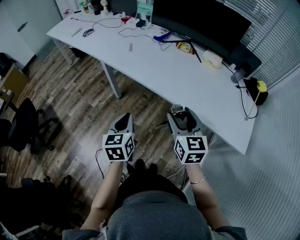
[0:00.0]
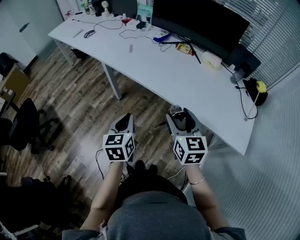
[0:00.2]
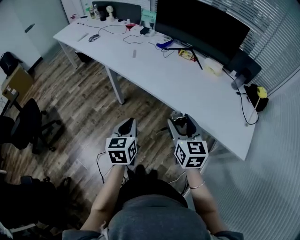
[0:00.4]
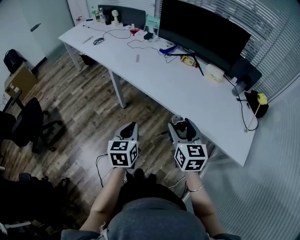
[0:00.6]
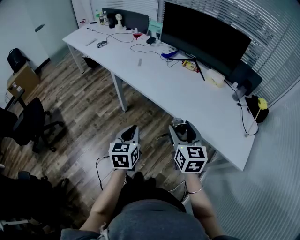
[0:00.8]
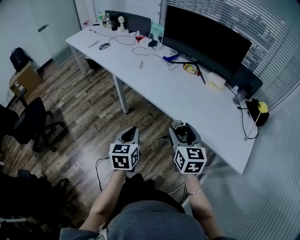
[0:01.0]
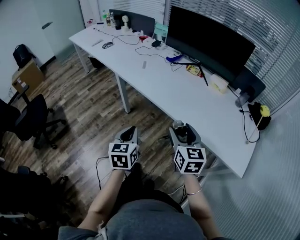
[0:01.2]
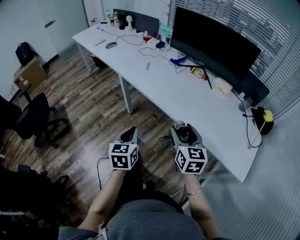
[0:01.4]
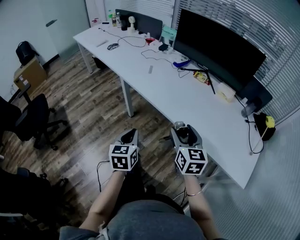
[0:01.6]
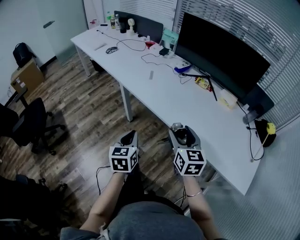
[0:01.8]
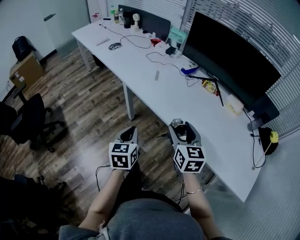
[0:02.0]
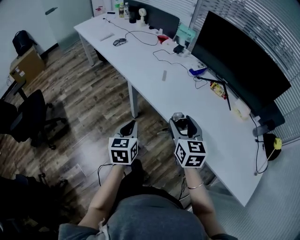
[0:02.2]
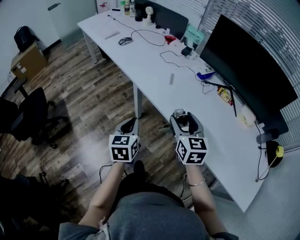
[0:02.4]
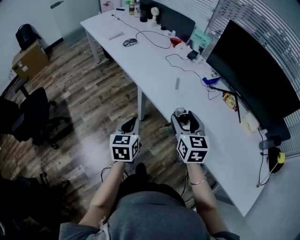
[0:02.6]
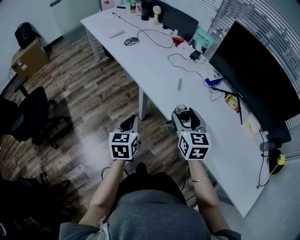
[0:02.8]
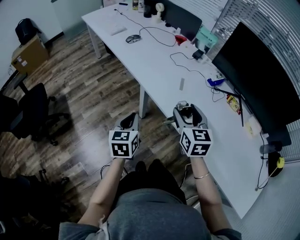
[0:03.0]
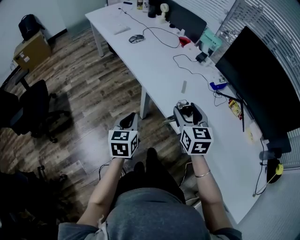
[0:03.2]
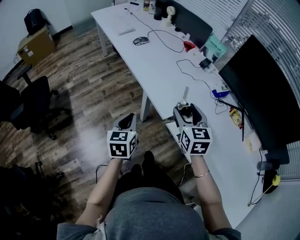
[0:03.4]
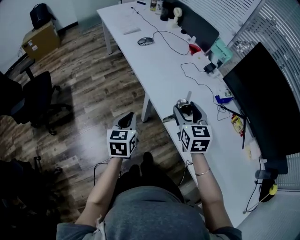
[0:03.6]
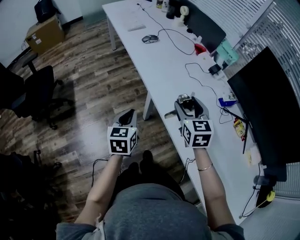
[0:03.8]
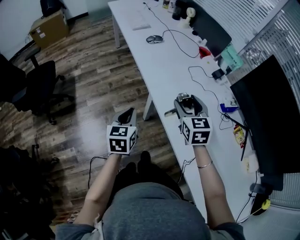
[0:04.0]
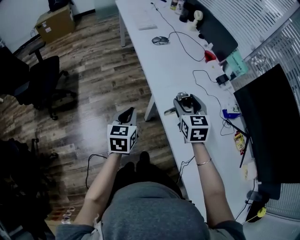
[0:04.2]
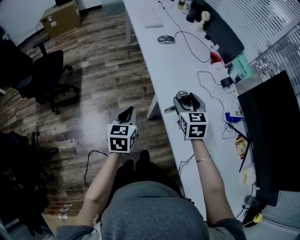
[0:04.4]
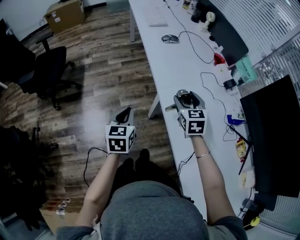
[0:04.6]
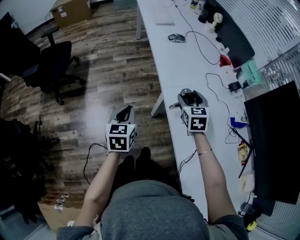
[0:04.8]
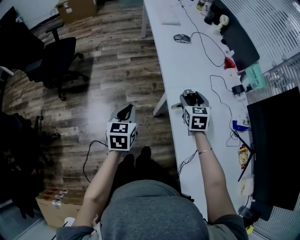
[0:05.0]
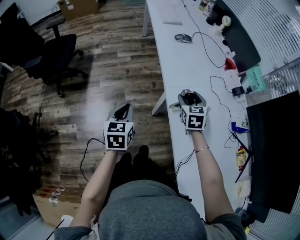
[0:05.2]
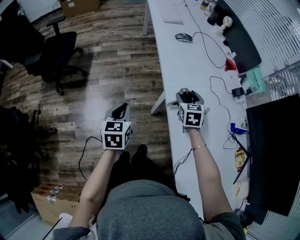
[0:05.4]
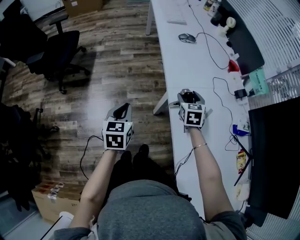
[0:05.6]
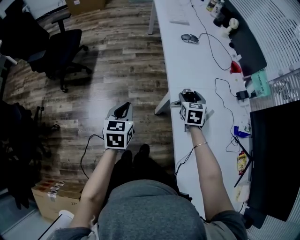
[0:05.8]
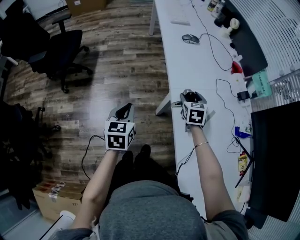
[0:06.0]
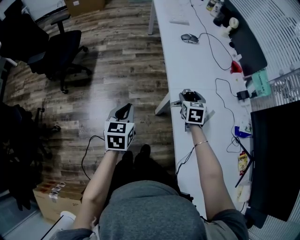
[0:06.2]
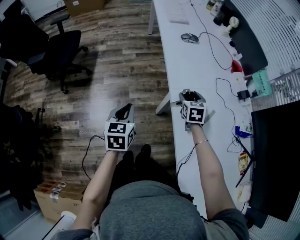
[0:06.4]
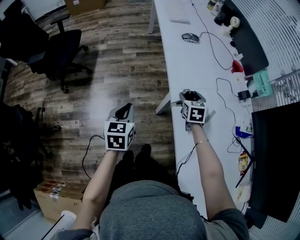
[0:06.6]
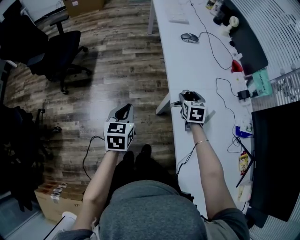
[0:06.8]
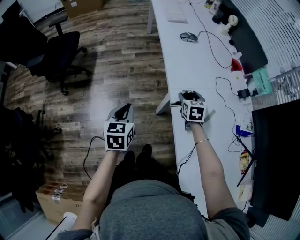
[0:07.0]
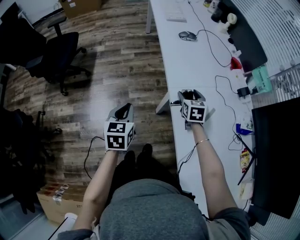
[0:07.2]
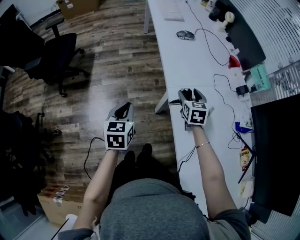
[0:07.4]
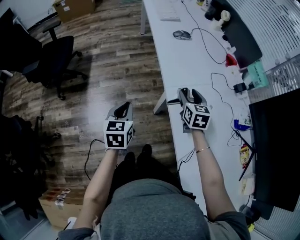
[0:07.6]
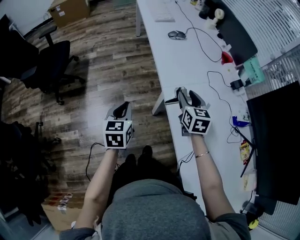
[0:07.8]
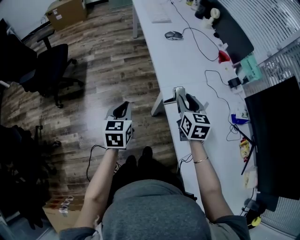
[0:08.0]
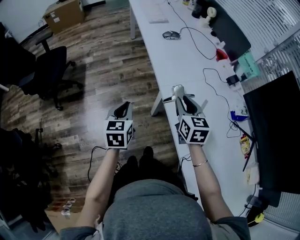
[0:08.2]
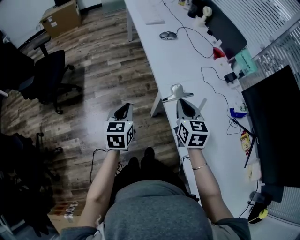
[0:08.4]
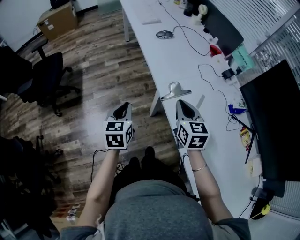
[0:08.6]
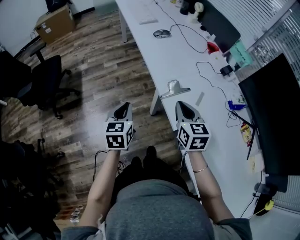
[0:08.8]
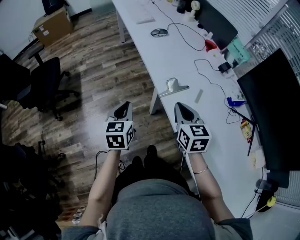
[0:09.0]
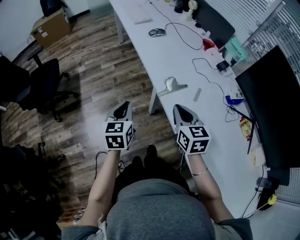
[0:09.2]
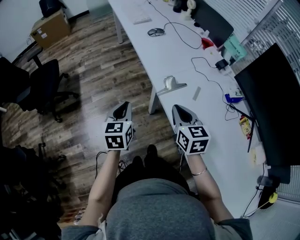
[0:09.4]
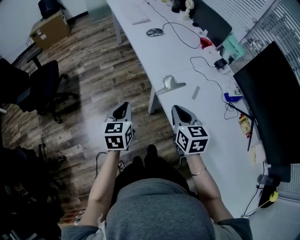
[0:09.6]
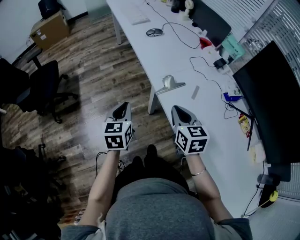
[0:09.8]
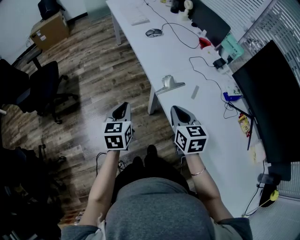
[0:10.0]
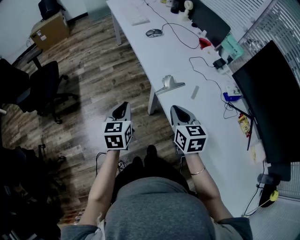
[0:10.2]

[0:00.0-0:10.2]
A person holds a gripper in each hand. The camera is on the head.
0:00.0 to 0:01.4: There are only small adjustments of the grippers.
0:01.4 to 0:03.0: Both grippers move forward and to the left, approximately 35 cm.
0:03.0 to 0:04.4: The left gripper is displaced forward by roughly 10 cm. Meanwhile the right gripper heads forward, covering about 20 cm, and changes its angle by approximately 30 degrees.
0:04.4 to 0:05.8: The left gripper shifts about 5 cm to the left. The right gripper travels downward and forward by some 10 cm.
0:05.8 to 0:07.2: The grippers move only a little.
0:07.2 to 0:08.8: The right gripper moves backward and upward, about 20 cm, and closes.
0:08.8 to 0:10.2: The grippers stay close to where they were, moving slightly.

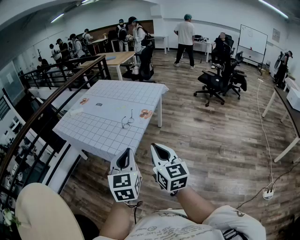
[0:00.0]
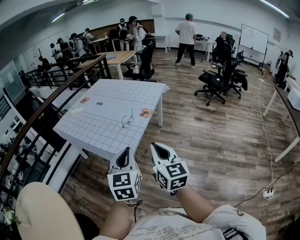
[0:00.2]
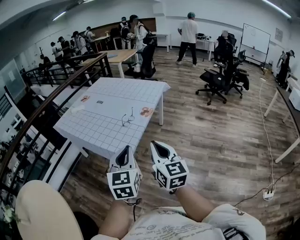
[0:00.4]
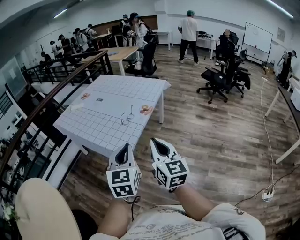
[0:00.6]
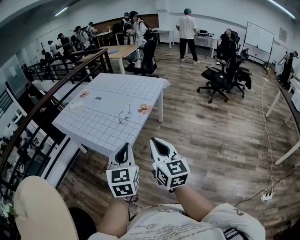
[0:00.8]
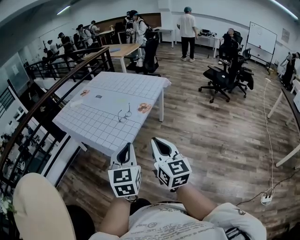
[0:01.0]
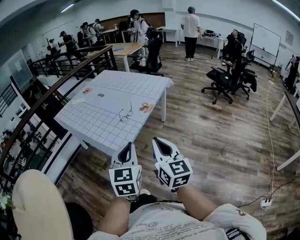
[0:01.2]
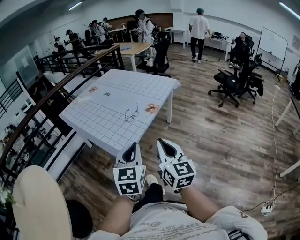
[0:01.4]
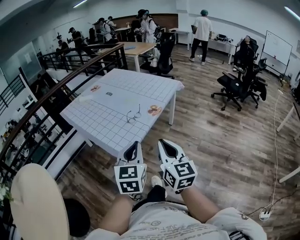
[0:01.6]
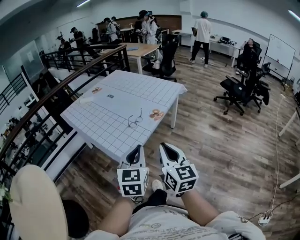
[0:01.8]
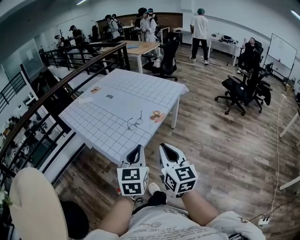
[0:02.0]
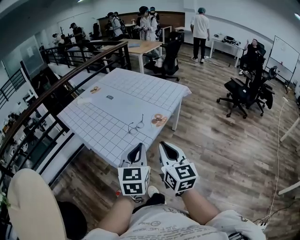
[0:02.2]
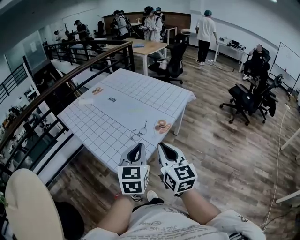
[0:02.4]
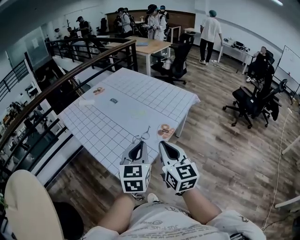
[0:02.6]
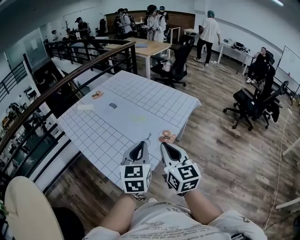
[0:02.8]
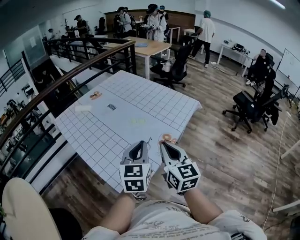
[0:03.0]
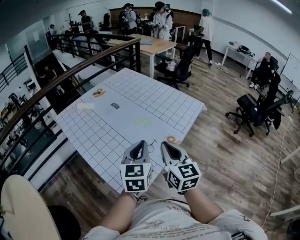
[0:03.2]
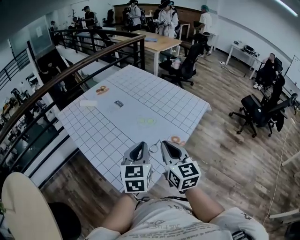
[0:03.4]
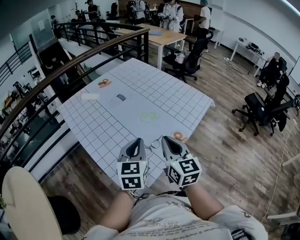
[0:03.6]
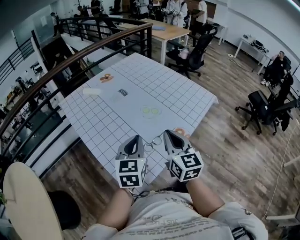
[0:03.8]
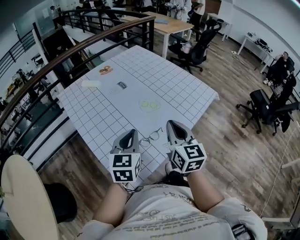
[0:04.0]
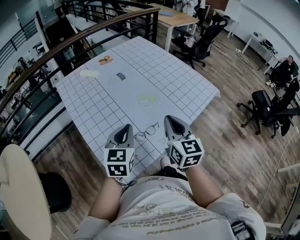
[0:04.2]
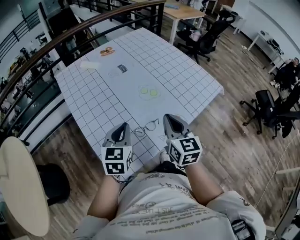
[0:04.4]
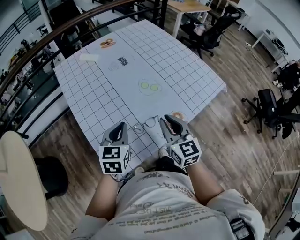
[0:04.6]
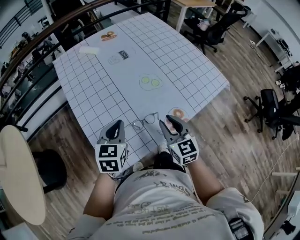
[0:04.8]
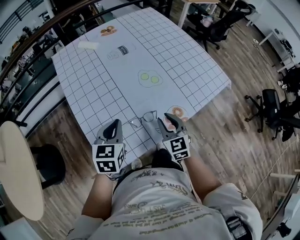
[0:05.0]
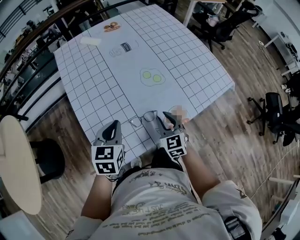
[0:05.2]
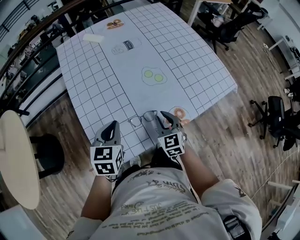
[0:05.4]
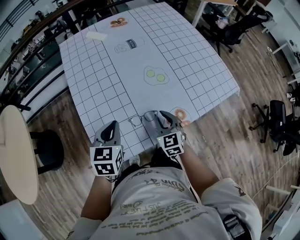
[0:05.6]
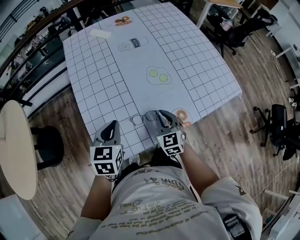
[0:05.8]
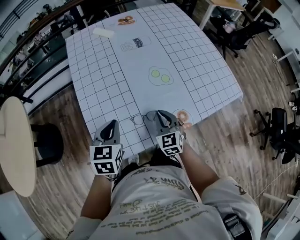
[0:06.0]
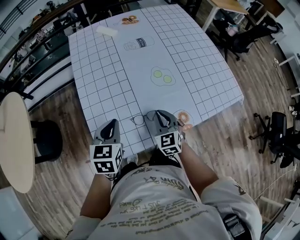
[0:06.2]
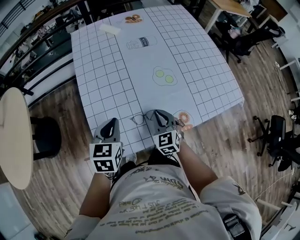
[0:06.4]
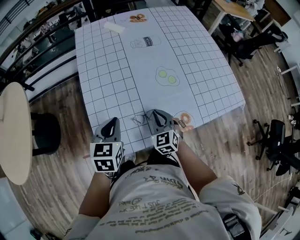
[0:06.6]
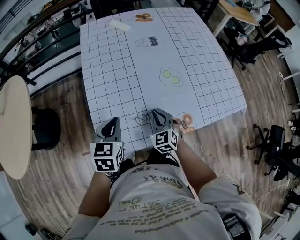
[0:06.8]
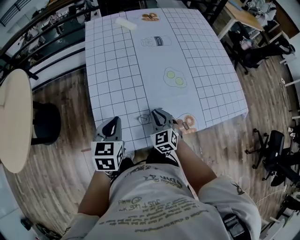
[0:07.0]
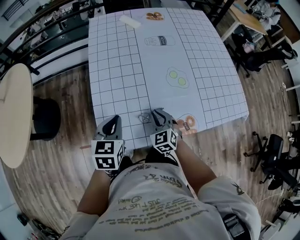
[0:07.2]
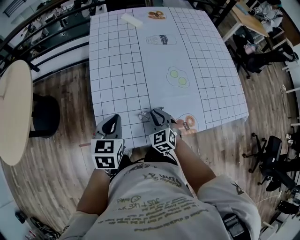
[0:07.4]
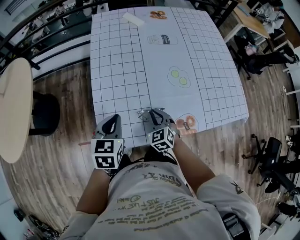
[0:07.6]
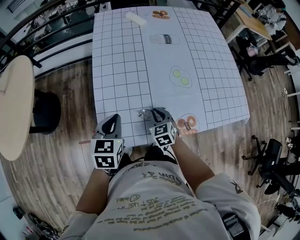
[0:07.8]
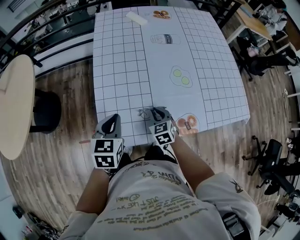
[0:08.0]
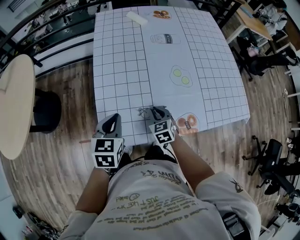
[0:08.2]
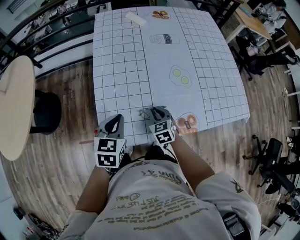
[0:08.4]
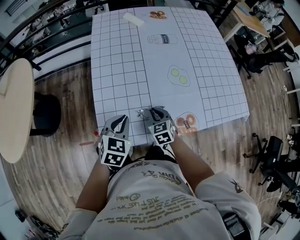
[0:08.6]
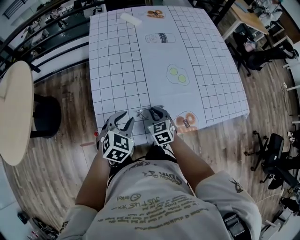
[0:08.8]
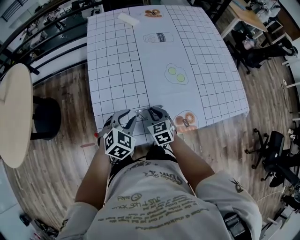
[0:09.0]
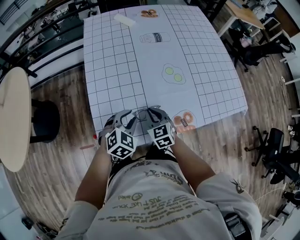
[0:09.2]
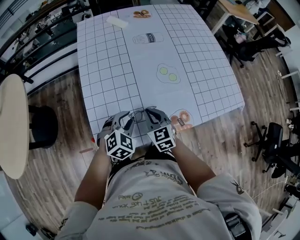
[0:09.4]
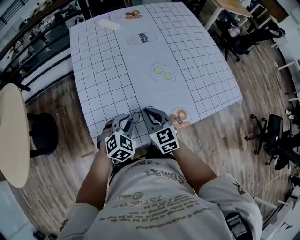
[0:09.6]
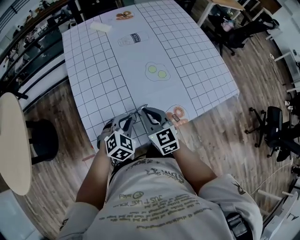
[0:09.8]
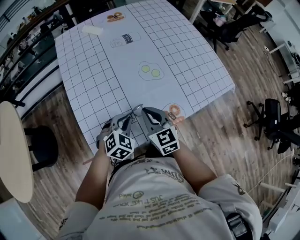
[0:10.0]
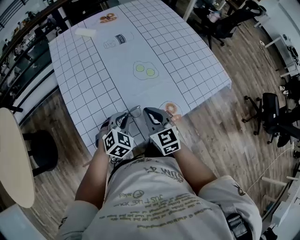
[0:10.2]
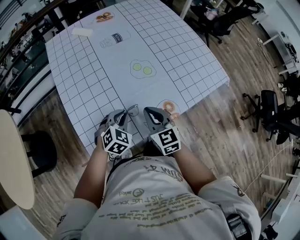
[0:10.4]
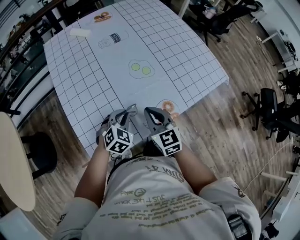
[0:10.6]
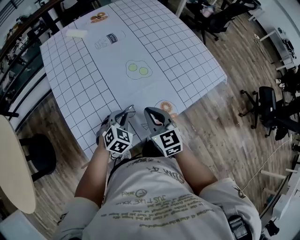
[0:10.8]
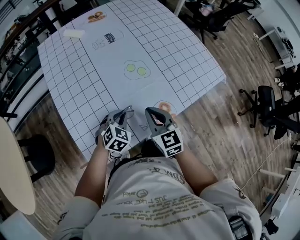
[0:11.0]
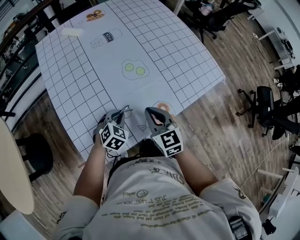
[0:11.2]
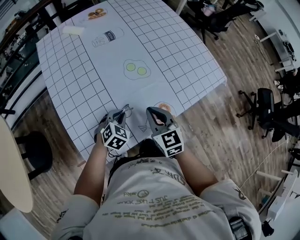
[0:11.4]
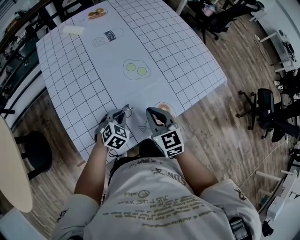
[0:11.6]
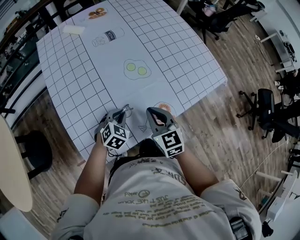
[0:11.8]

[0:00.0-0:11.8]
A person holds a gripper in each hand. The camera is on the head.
0:00.0 to 0:01.4: The grippers both shift to the right by roughly 5 cm.
0:01.4 to 0:03.0: Both grippers travel together forward, some 35 cm.
0:03.0 to 0:04.4: The left gripper travels downward by about 10 cm. The right gripper goes about 15 cm forward and downward.
0:04.4 to 0:06.0: The left gripper changes place by approximately 5 cm, and turns by roughly 20 degrees. The right gripper travels downward by about 15 cm, turns by roughly 30 degrees, and opens, then closes again.
0:06.0 to 0:07.4: The right gripper is displaced to the left by some 10 cm, and changes its angle by some 20 degrees. The left gripper moves roughly 5 cm.
0:07.4 to 0:08.8: The left gripper heads downward, covering approximately 5 cm, swivels roughly 30 degrees, and opens up.
0:08.8 to 0:10.4: The left gripper heads to the right, covering roughly 10 cm, and changes its angle by about 20 degrees. The right gripper goes roughly 15 cm upward and to the right, and rotates roughly 20 degrees.
0:10.4 to 0:11.8: The left gripper travels downward by roughly 5 cm.

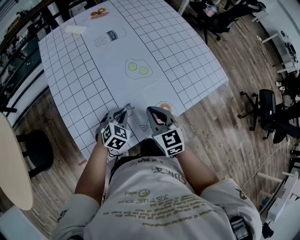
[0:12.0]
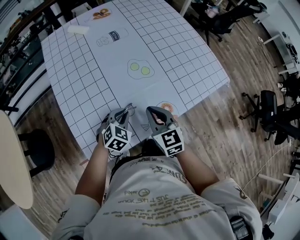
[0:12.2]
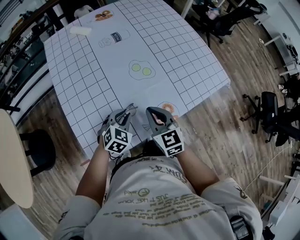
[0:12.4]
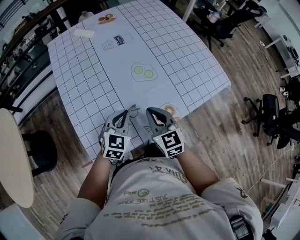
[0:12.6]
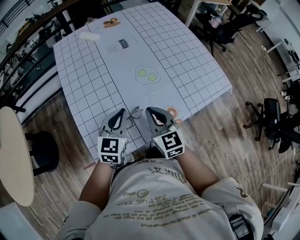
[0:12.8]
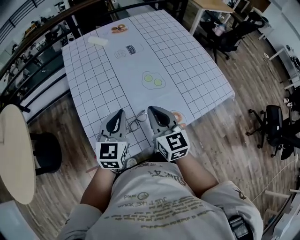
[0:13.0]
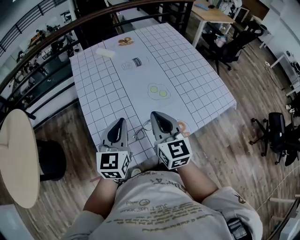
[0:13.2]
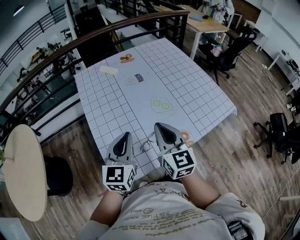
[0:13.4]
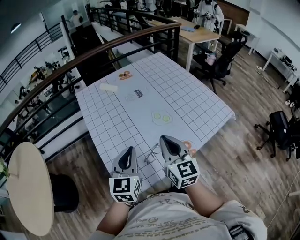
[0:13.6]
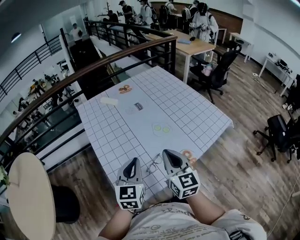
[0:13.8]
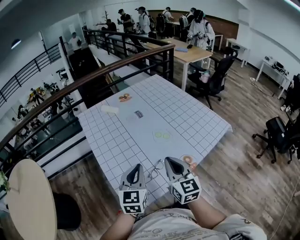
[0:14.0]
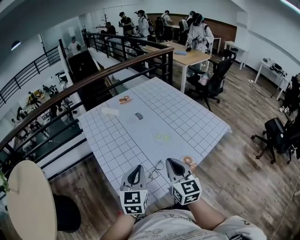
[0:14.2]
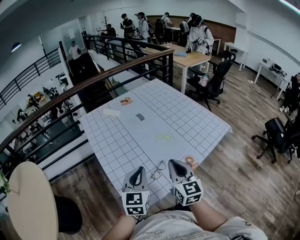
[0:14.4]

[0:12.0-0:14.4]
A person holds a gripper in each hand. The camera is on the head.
0:12.0 to 0:13.2: The left gripper is displaced upward by some 25 cm, and tilts its fingers some 40 degrees upward. Meanwhile the right gripper travels upward and to the left by some 15 cm.
0:13.2 to 0:14.4: Both grippers move backward, roughly 5 cm.
